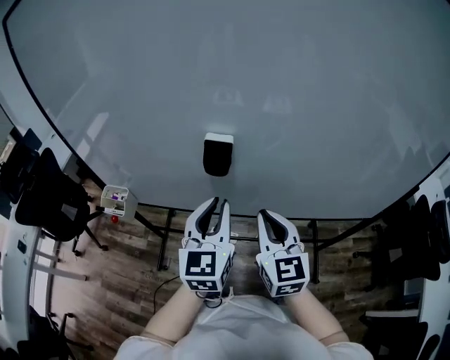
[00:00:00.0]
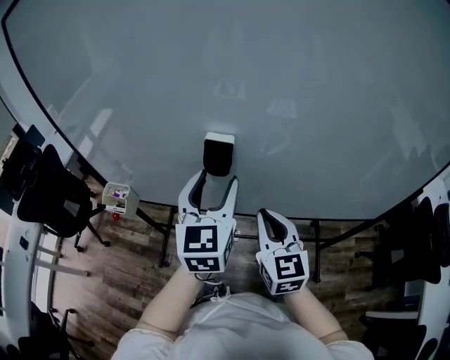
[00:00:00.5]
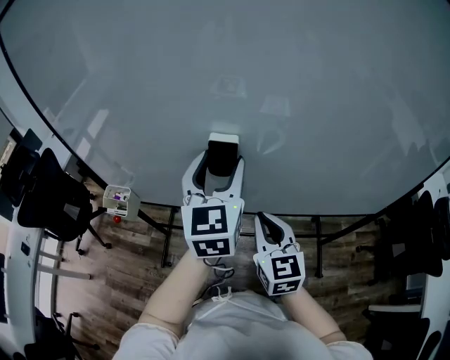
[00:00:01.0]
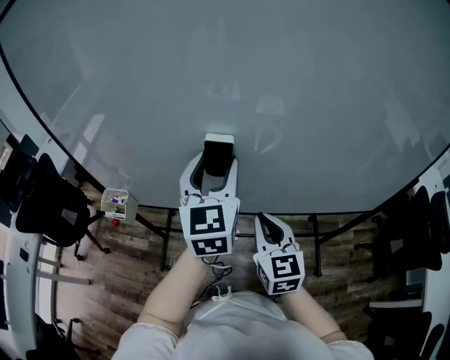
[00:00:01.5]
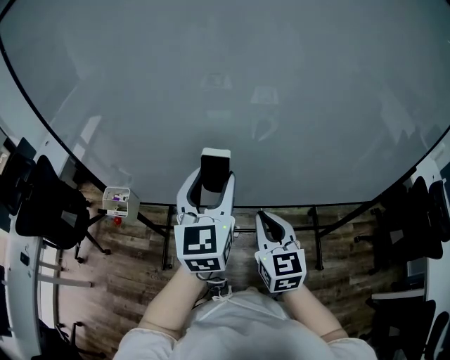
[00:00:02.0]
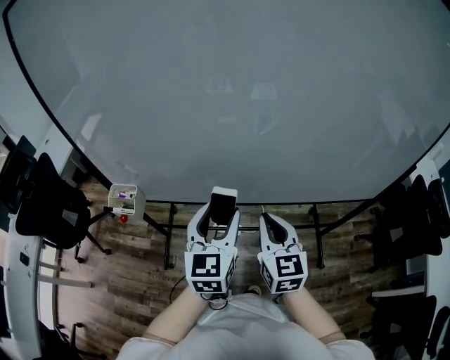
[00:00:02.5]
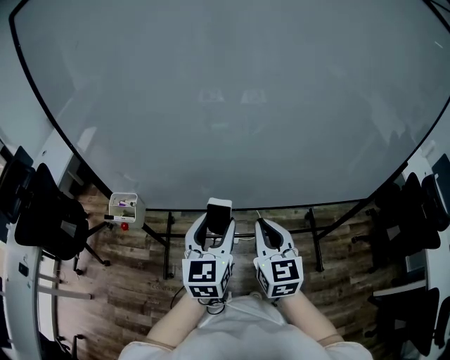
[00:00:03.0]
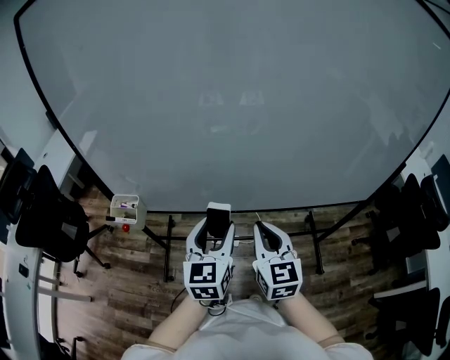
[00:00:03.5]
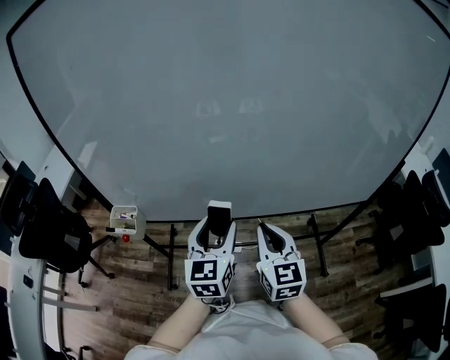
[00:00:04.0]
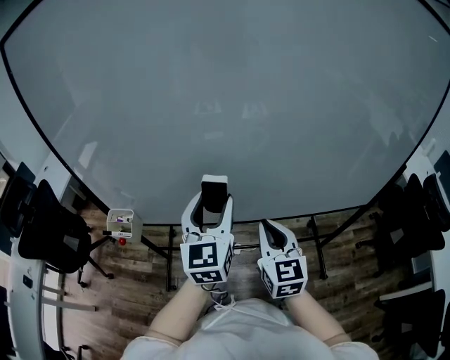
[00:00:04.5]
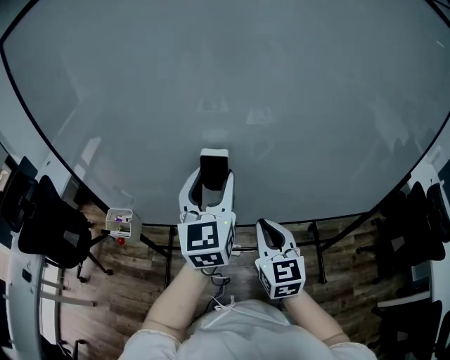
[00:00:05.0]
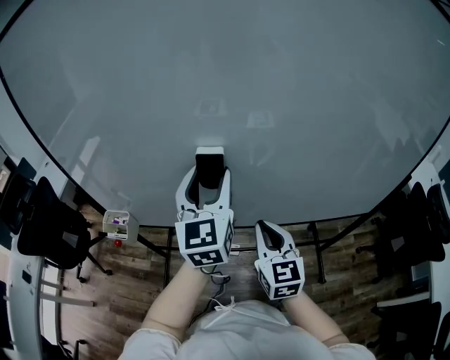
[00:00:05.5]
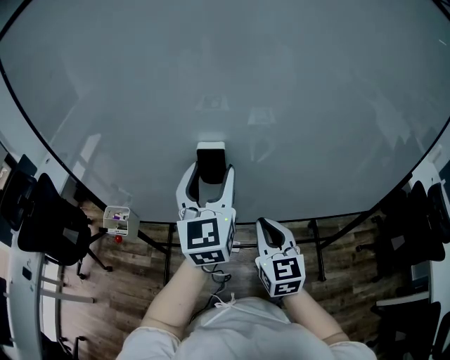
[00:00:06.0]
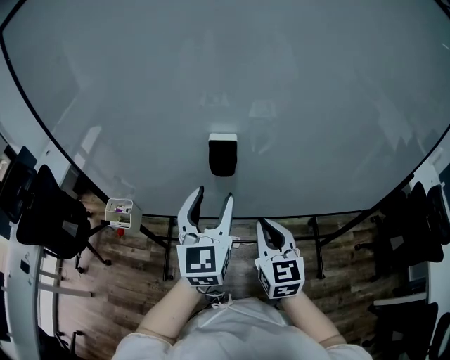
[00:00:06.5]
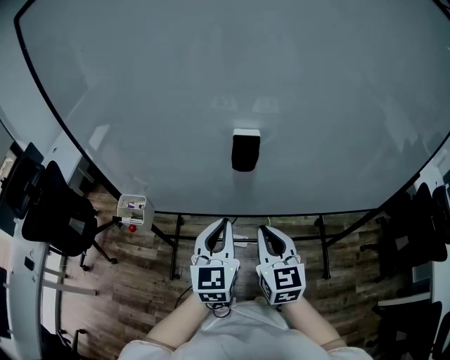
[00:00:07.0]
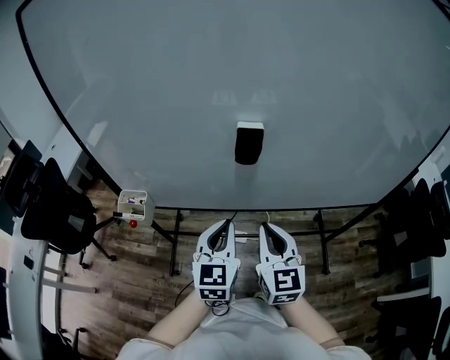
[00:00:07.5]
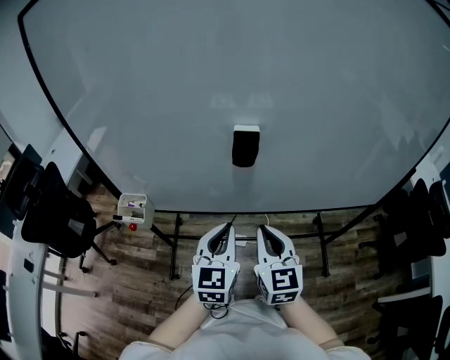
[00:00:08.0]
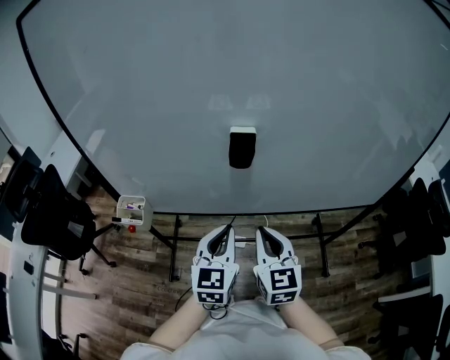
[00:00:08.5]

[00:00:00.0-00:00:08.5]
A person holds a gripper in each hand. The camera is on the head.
00:00:00.0 to 00:00:02.0: The left gripper travels upward by roughly 5 cm, and opens.
00:00:02.0 to 00:00:04.0: The left gripper travels downward and backward by roughly 10 cm.
00:00:04.0 to 00:00:06.5: The left gripper goes approximately 10 cm upward.
00:00:06.5 to 00:00:08.5: The left gripper is displaced downward and backward by about 10 cm, and closes up; the right gripper changes place by roughly 5 cm.

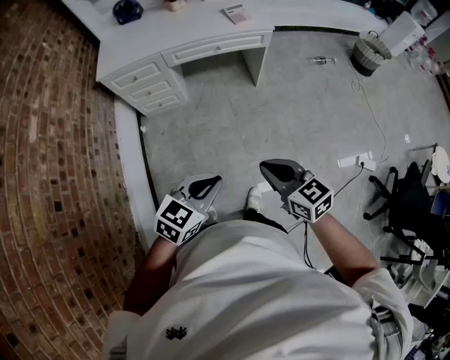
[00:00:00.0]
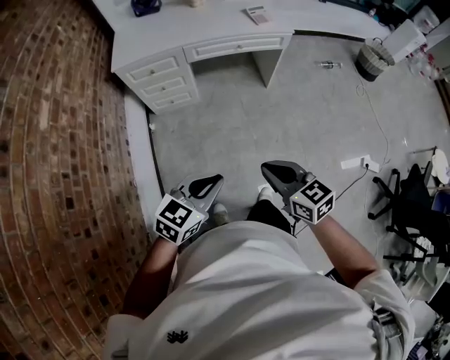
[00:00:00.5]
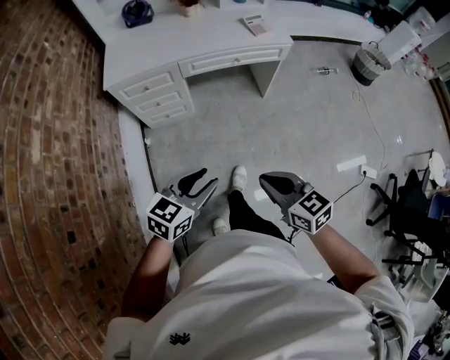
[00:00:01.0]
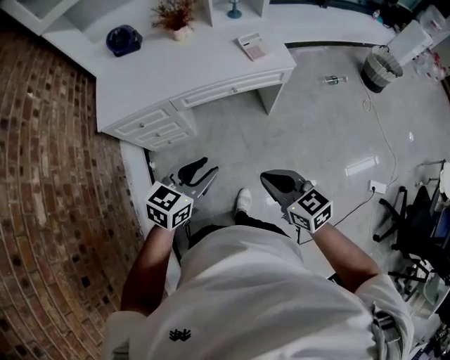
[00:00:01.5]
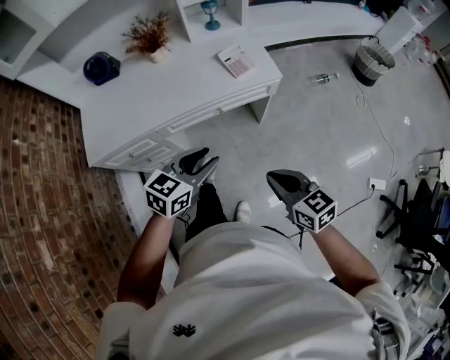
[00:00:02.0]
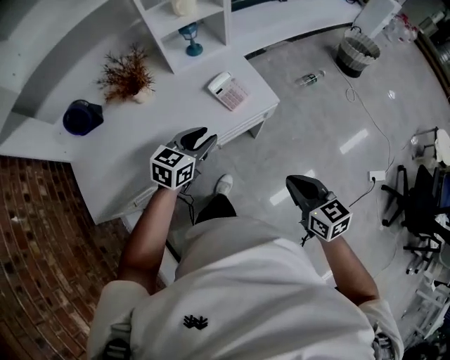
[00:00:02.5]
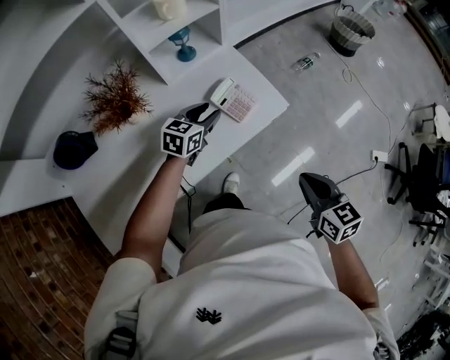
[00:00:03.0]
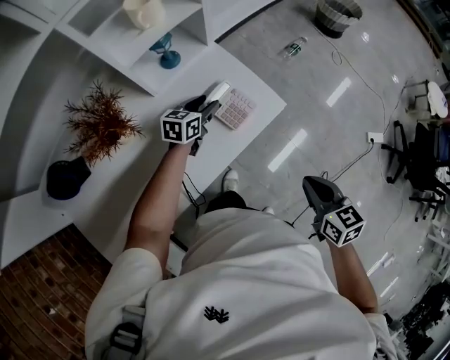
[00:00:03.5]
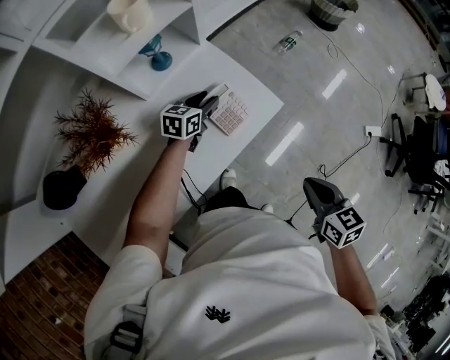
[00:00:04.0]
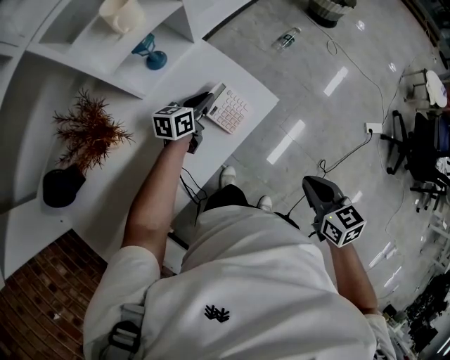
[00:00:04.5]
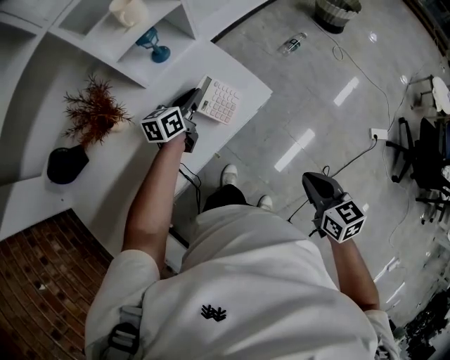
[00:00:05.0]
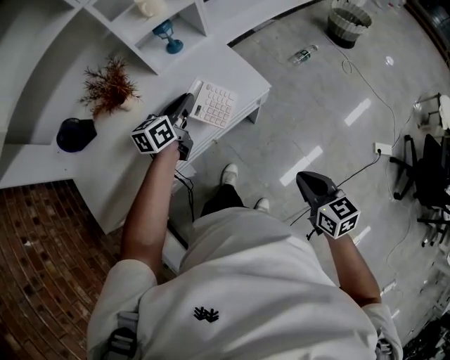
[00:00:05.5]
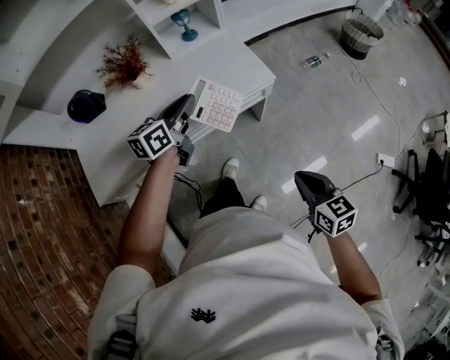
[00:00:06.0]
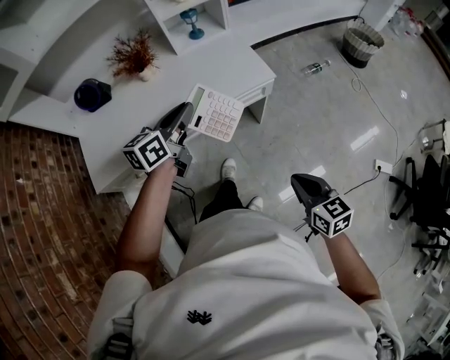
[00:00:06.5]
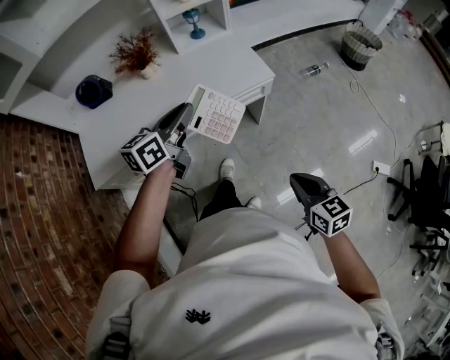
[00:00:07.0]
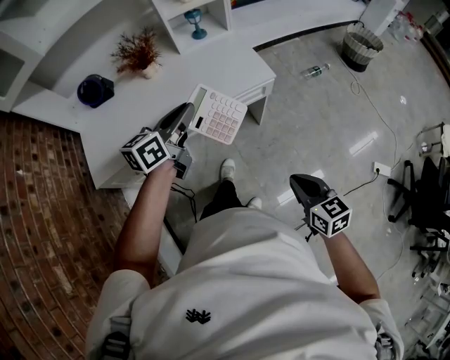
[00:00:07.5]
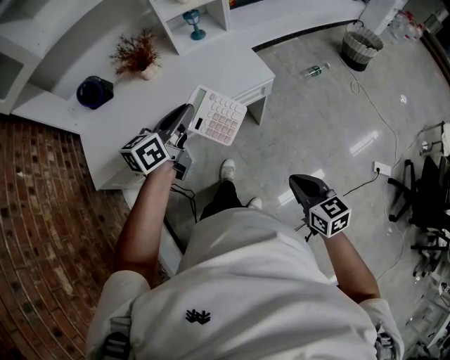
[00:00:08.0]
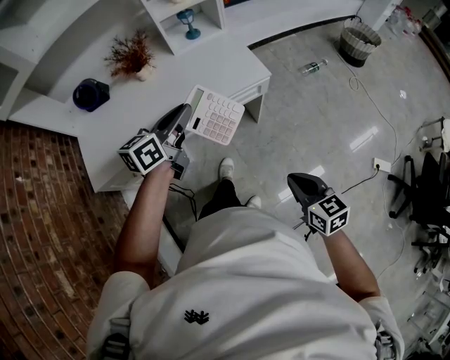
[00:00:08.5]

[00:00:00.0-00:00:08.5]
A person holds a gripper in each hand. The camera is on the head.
00:00:00.0 to 00:00:02.0: Both grippers travel together forward, about 40 cm. The left gripper opens its fingers.
00:00:02.0 to 00:00:04.0: The left gripper ends up some 50 cm from where it was; the right gripper shifts by about 25 cm, and rotates some 40 degrees.
00:00:04.0 to 00:00:06.5: The right gripper ends up about 20 cm from where it was, and changes its angle by approximately 30 degrees, while the left gripper ends up approximately 40 cm from where it was, rotates roughly 40 degrees, and closes.
00:00:06.5 to 00:00:08.5: There are only small adjustments of the grippers.

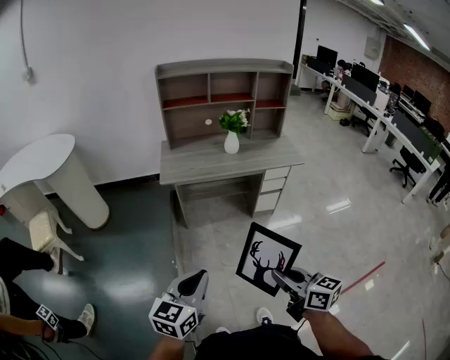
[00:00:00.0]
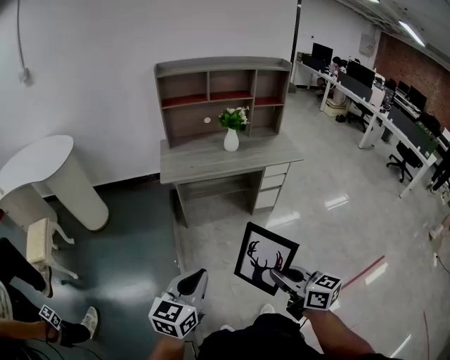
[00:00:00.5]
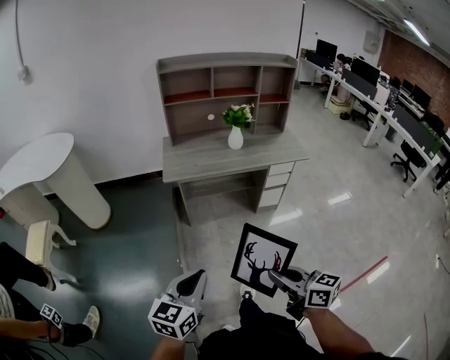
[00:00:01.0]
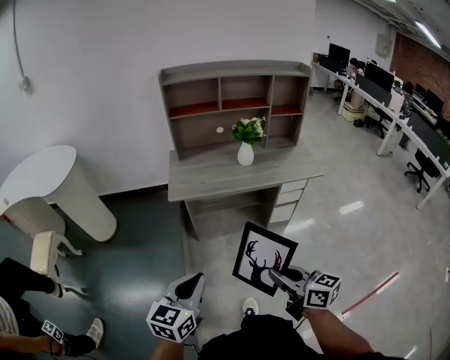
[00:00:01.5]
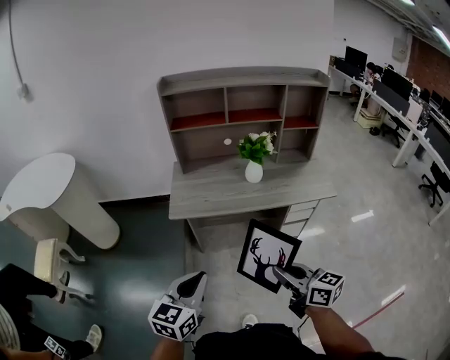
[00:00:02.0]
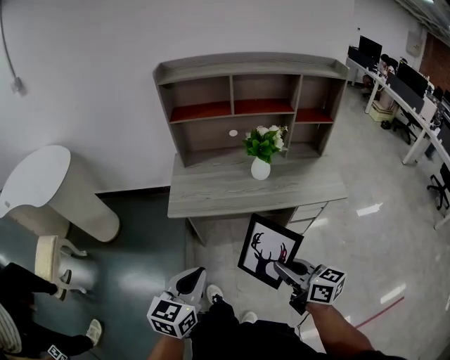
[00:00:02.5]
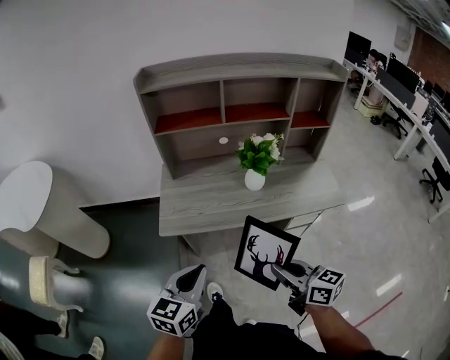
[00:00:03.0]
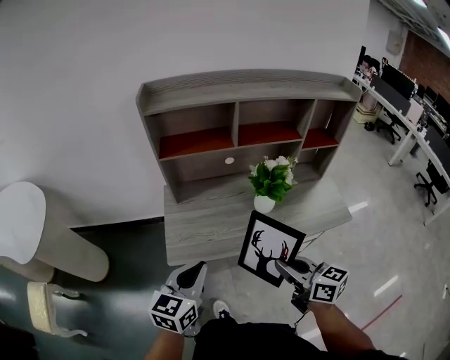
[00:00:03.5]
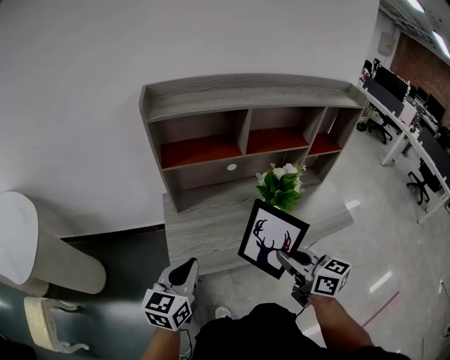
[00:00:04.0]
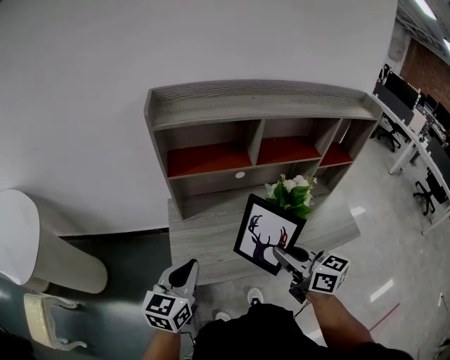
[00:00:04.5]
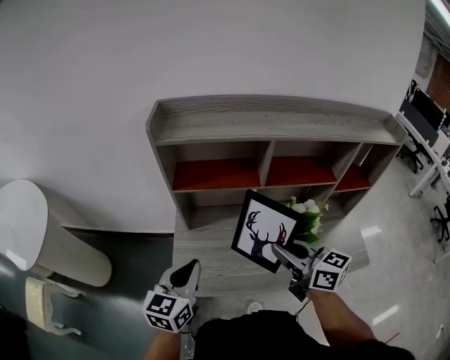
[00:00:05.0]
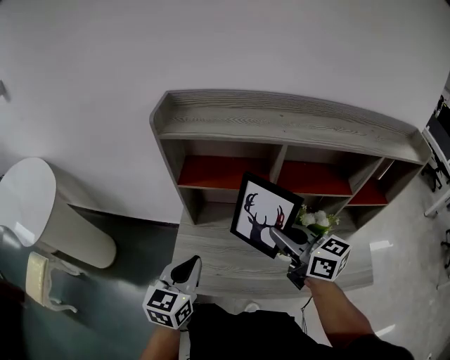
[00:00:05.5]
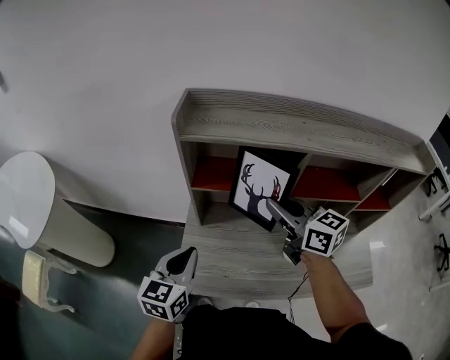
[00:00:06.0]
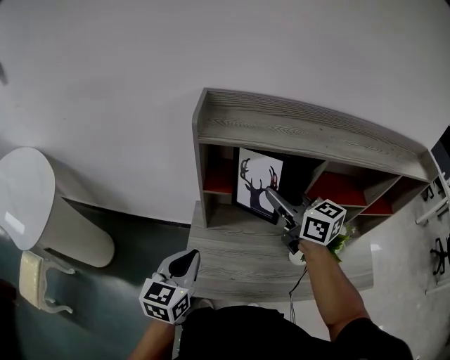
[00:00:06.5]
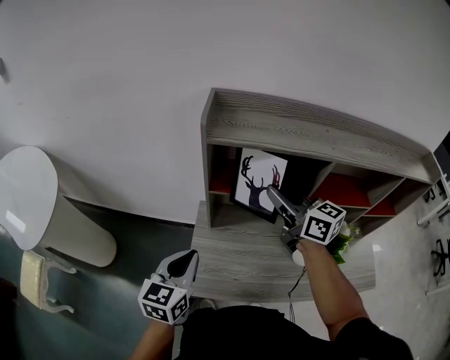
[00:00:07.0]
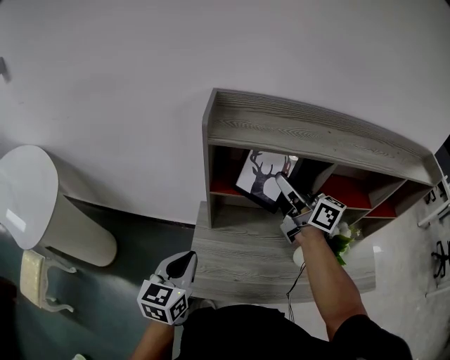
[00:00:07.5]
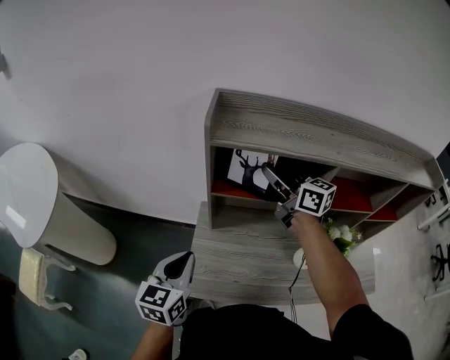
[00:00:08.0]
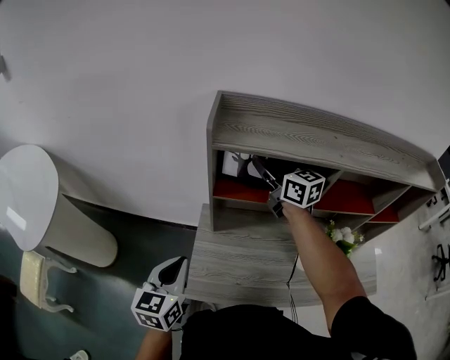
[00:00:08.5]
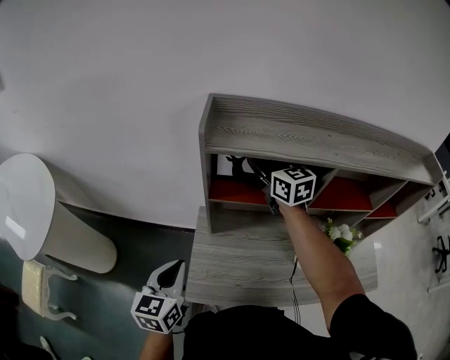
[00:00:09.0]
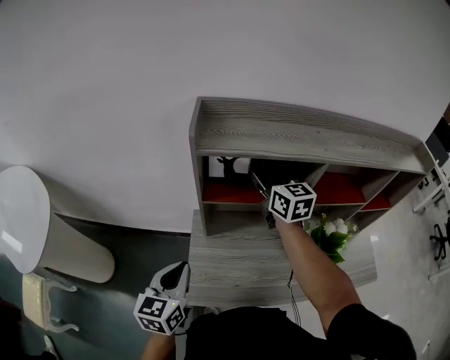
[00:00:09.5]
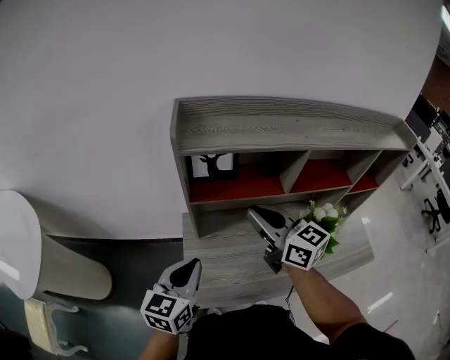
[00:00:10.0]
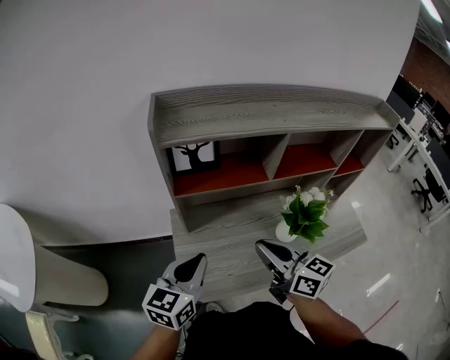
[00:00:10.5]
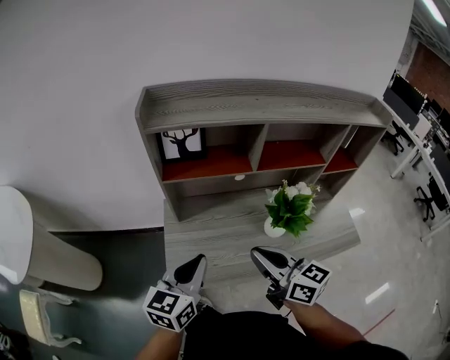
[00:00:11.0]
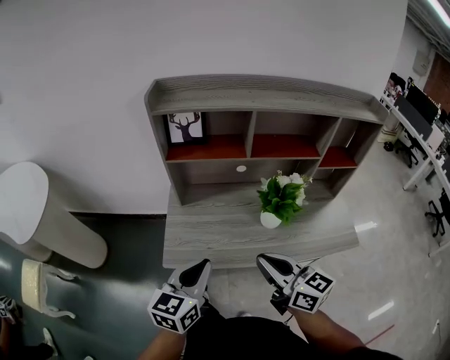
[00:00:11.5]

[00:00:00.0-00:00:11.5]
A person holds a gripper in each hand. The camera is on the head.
00:00:00.0 to 00:00:02.0: The two grippers go about 25 cm forward.
00:00:02.0 to 00:00:04.0: Both grippers move forward, some 40 cm.
00:00:04.0 to 00:00:06.0: The right gripper shifts about 30 cm forward, and turns by some 20 degrees. Meanwhile the left gripper moves forward, some 15 cm.
00:00:06.0 to 00:00:07.5: The left gripper travels to the left by approximately 5 cm. Meanwhile the right gripper moves forward, some 10 cm, and changes its angle by roughly 20 degrees.
00:00:07.5 to 00:00:09.5: The right gripper goes about 5 cm forward, rotates about 40 degrees, and opens.
00:00:09.5 to 00:00:11.5: The right gripper is displaced backward by roughly 40 cm, turns by approximately 20 degrees, and closes; the left gripper shifts roughly 25 cm backward and to the right.
